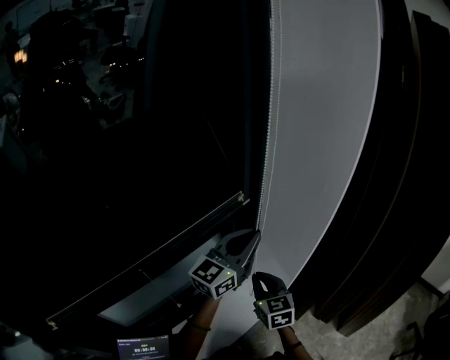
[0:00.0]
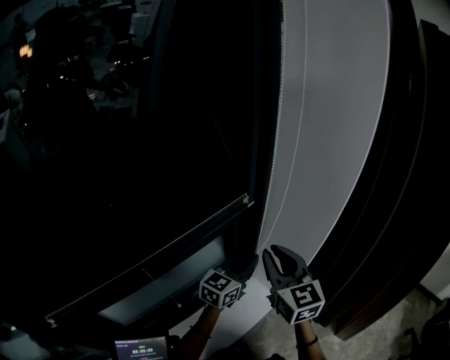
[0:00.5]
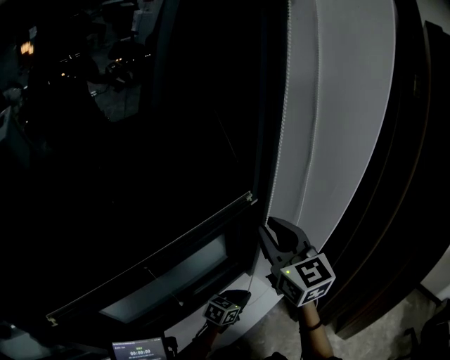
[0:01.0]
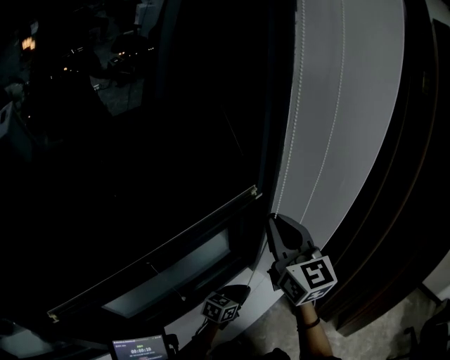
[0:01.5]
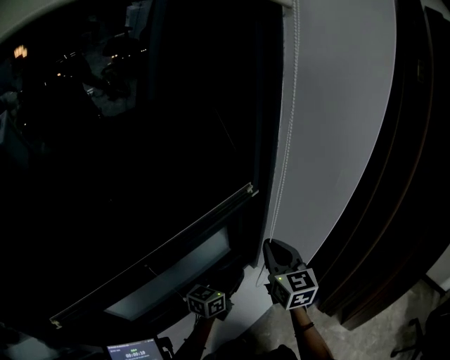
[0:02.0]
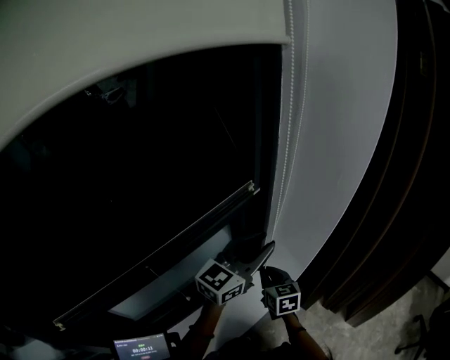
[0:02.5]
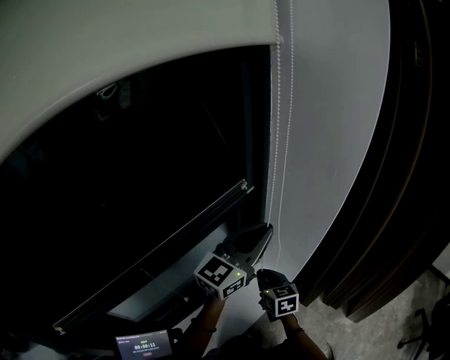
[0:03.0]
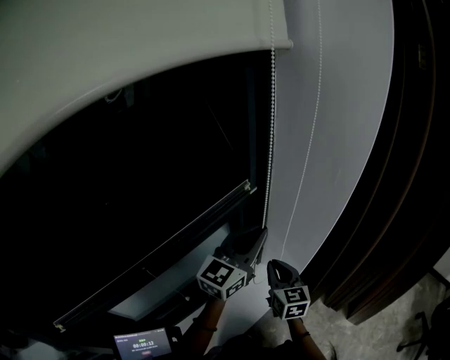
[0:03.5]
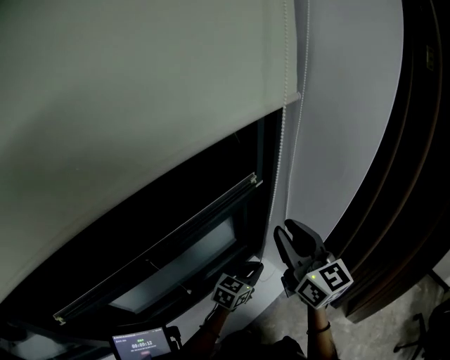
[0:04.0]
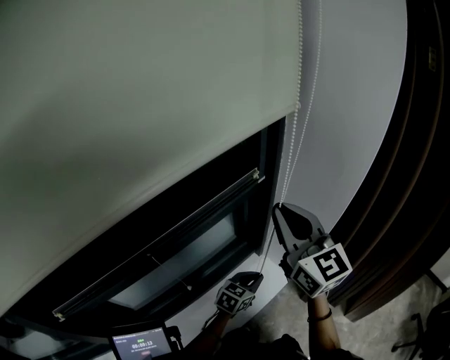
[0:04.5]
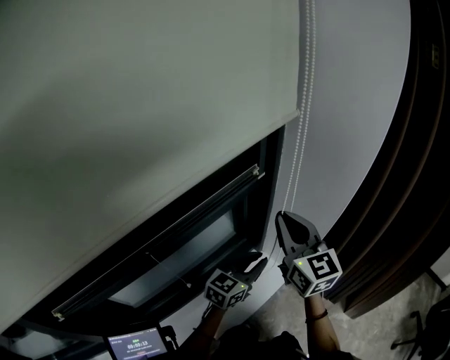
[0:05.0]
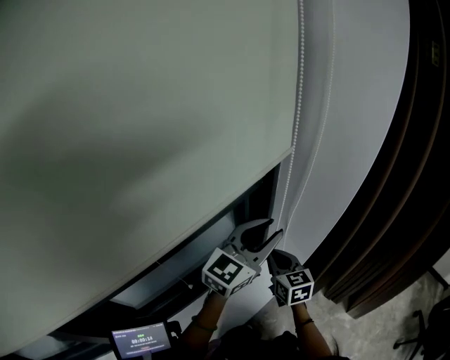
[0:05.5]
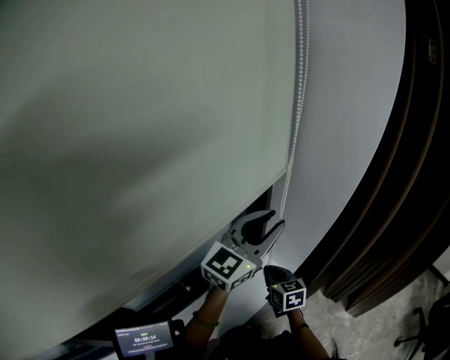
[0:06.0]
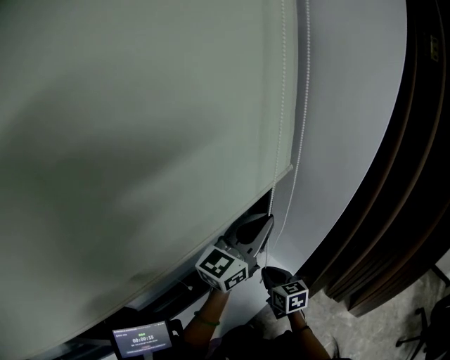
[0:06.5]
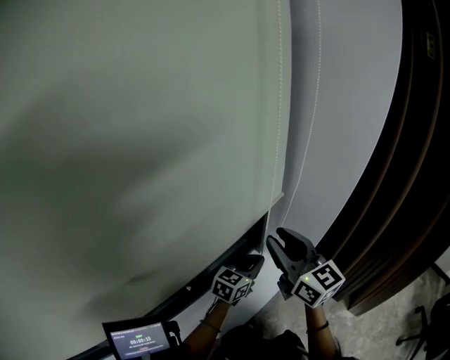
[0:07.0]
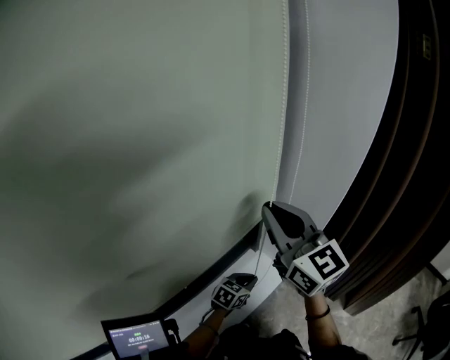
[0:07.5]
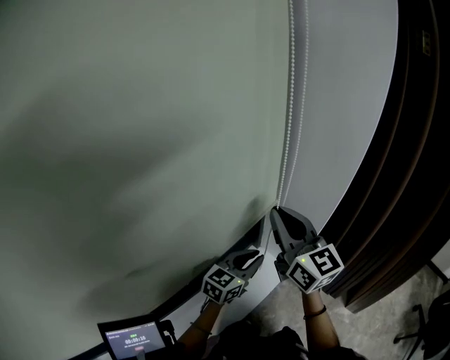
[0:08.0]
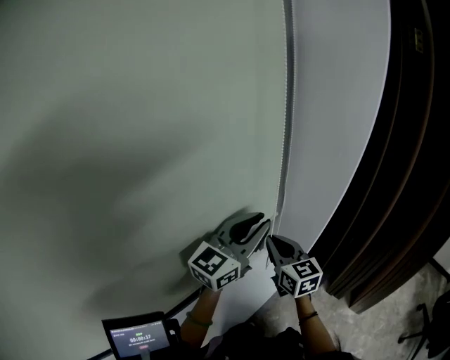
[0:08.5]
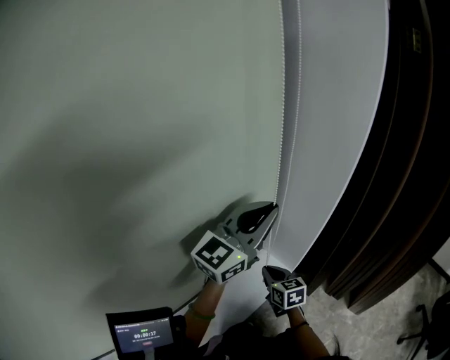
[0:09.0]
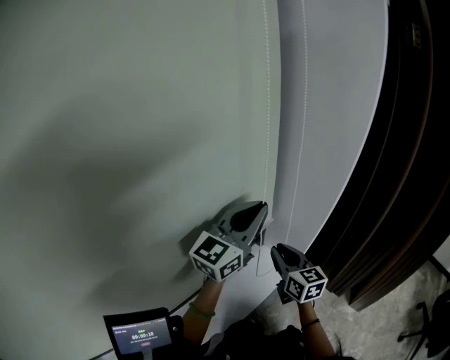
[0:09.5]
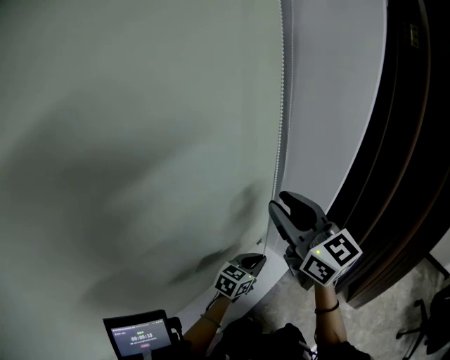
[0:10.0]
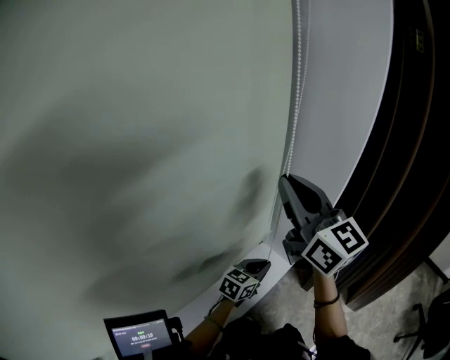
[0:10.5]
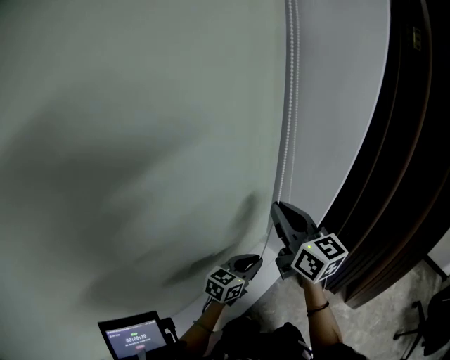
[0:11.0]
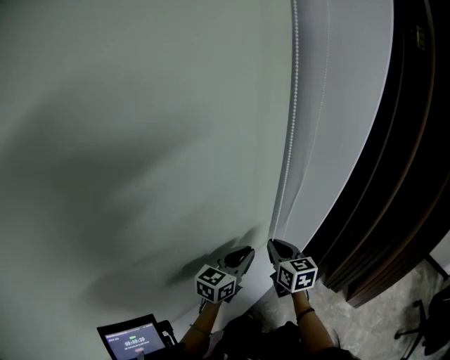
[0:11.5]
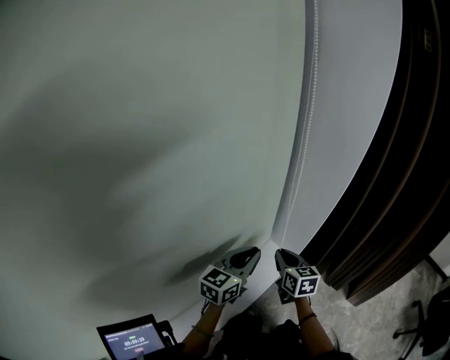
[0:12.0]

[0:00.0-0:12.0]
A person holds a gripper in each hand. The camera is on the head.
0:00.0 to 0:02.0: The right gripper travels upward by some 10 cm. Meanwhile the left gripper travels downward by some 20 cm, and swivels roughly 30 degrees.
0:02.0 to 0:04.0: The left gripper shifts some 5 cm to the right, and moves about 20 cm upward and comes back. The right gripper travels downward and back again, some 20 cm each way.
0:04.0 to 0:06.0: The right gripper shifts roughly 30 cm downward, tilts its fingers approximately 40 degrees downward, and closes; the left gripper travels upward by about 25 cm, swivels roughly 30 degrees, and opens its fingers.
0:06.0 to 0:08.0: The right gripper is displaced upward by some 30 cm, angles its fingers upward, by about 40 degrees, and opens, then closes once more. Meanwhile the left gripper travels downward by roughly 20 cm, and swivels some 30 degrees.
0:08.0 to 0:10.0: The left gripper goes upward and returns, approximately 25 cm each way, while the right gripper goes downward and returns, about 30 cm each way, and opens up.
0:10.0 to 0:12.0: The right gripper shifts roughly 30 cm downward, angles its fingers downward, by about 40 degrees, and closes, while the left gripper goes roughly 10 cm upward.

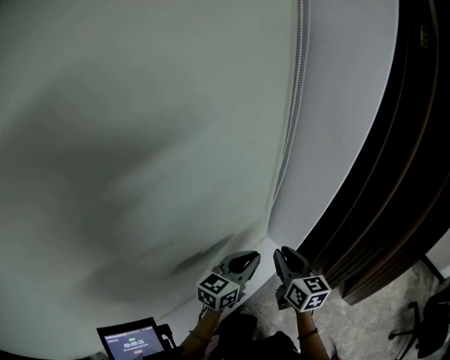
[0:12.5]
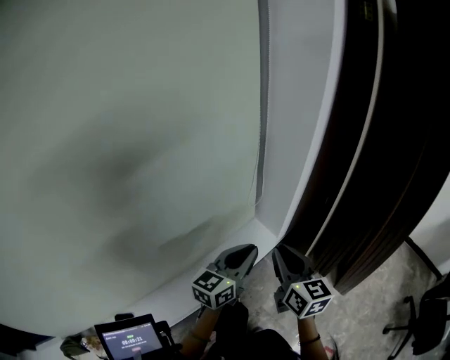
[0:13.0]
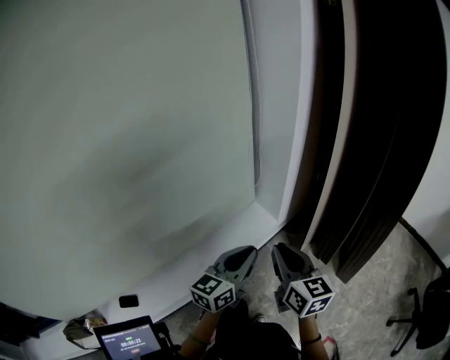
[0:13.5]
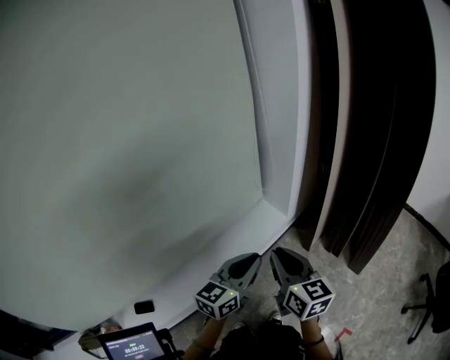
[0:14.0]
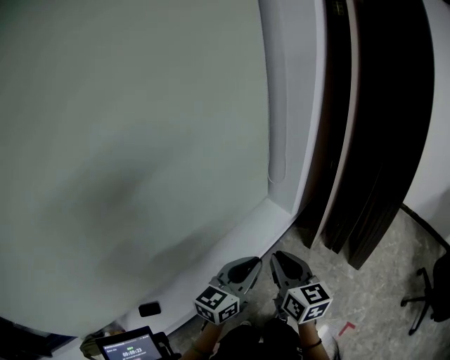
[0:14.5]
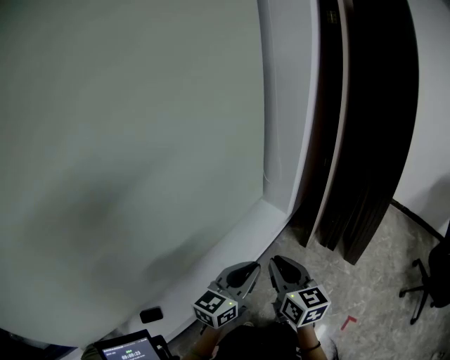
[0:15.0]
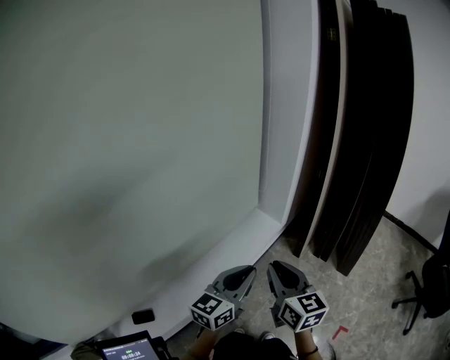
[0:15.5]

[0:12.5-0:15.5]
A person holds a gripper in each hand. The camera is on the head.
0:12.5 to 0:14.0: Both grippers travel together backward, some 30 cm.
0:14.0 to 0:15.5: Both grippers move backward and to the left, some 15 cm.

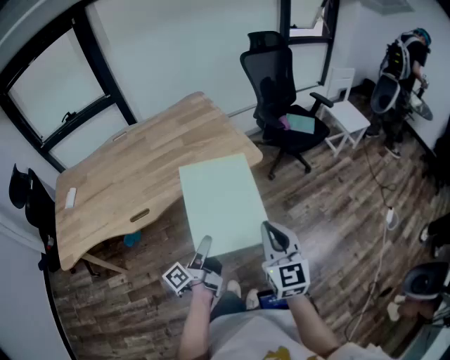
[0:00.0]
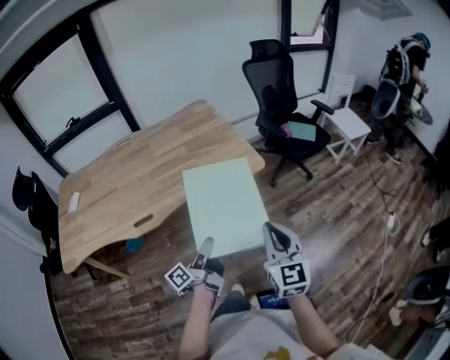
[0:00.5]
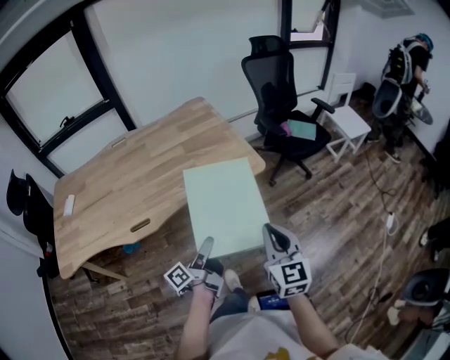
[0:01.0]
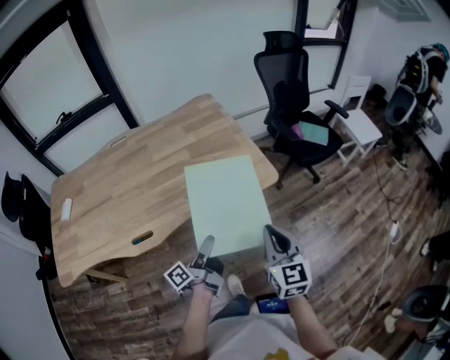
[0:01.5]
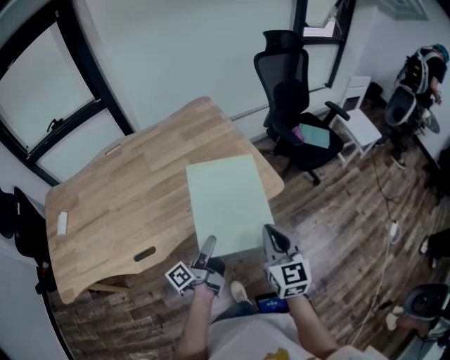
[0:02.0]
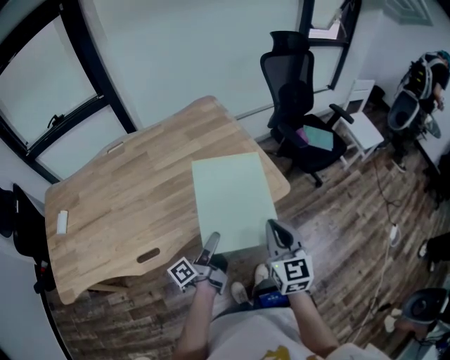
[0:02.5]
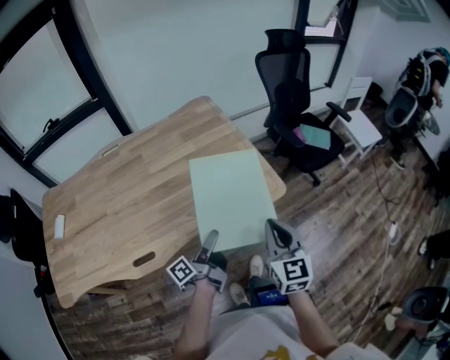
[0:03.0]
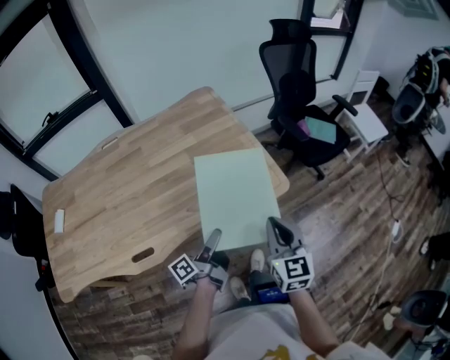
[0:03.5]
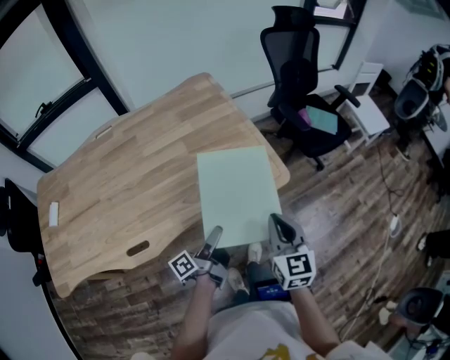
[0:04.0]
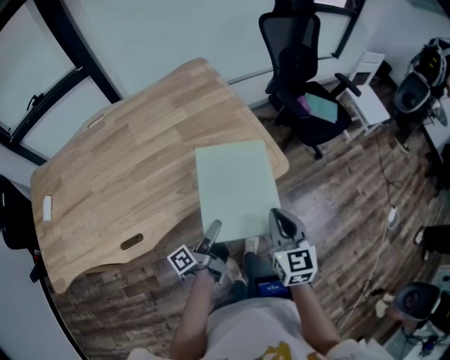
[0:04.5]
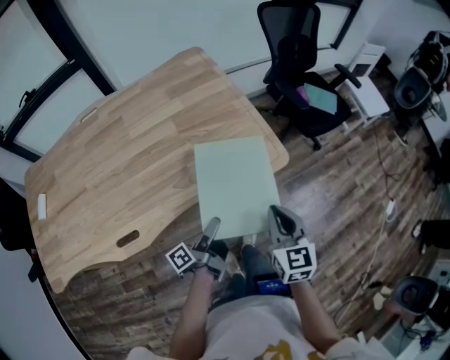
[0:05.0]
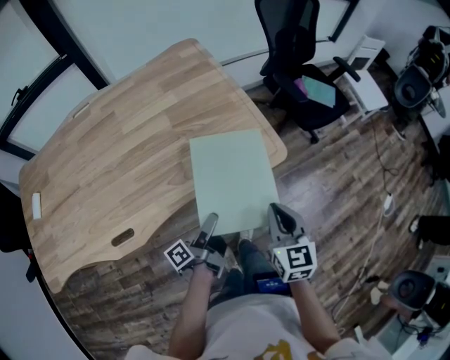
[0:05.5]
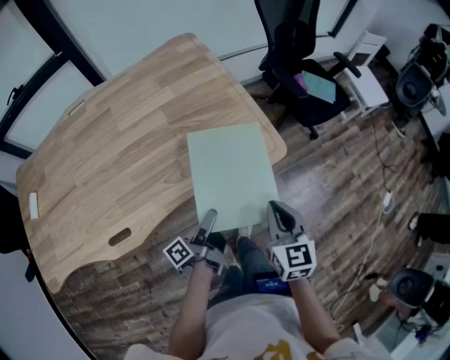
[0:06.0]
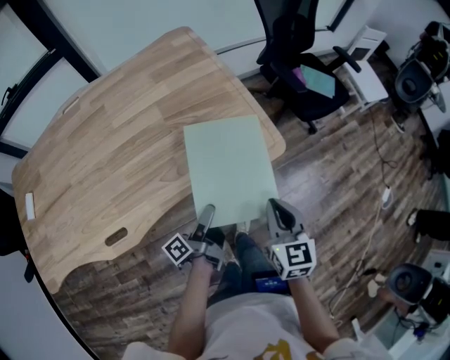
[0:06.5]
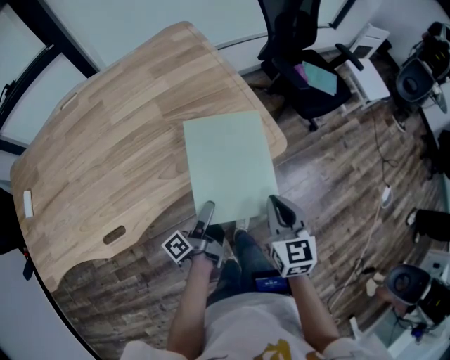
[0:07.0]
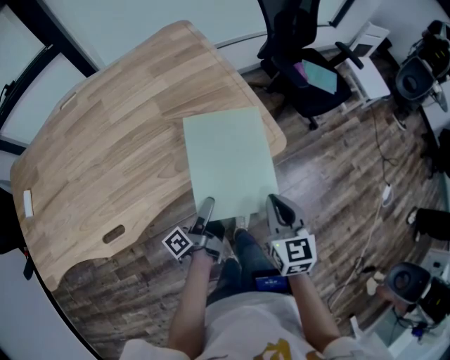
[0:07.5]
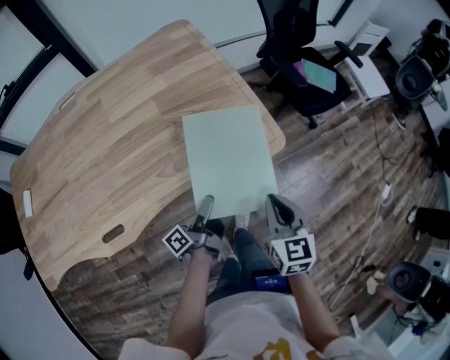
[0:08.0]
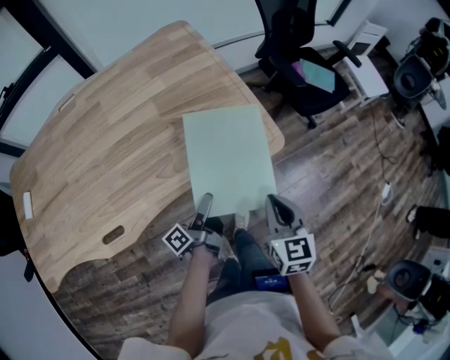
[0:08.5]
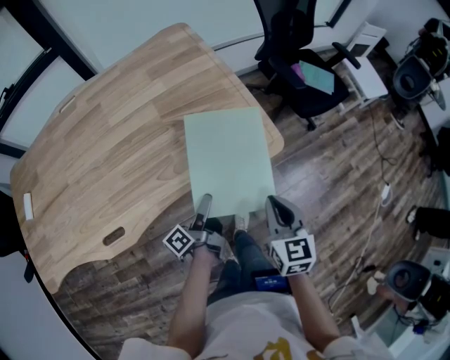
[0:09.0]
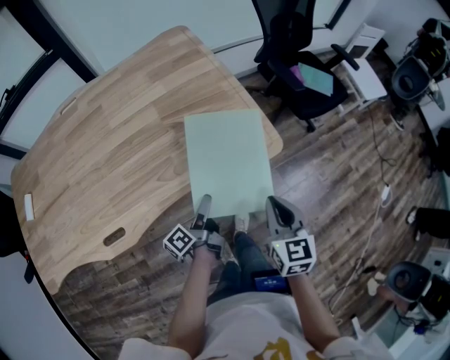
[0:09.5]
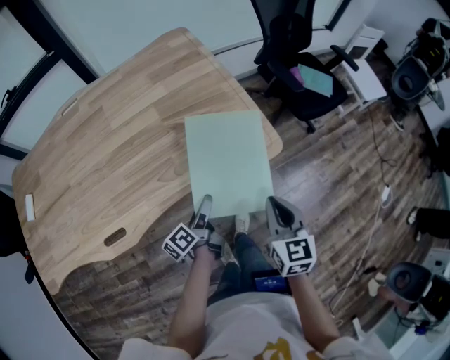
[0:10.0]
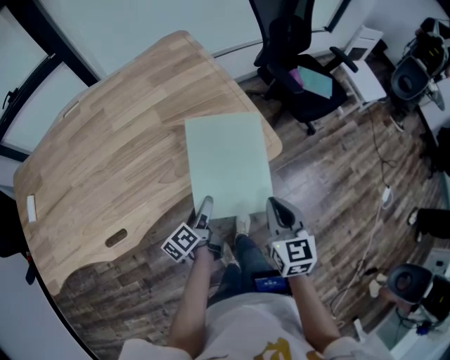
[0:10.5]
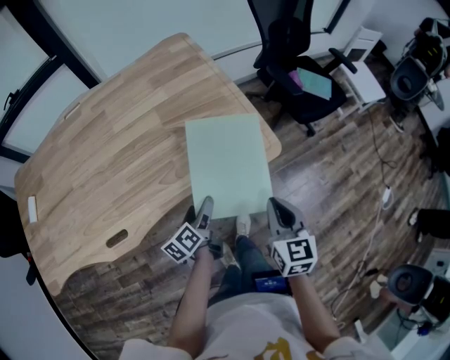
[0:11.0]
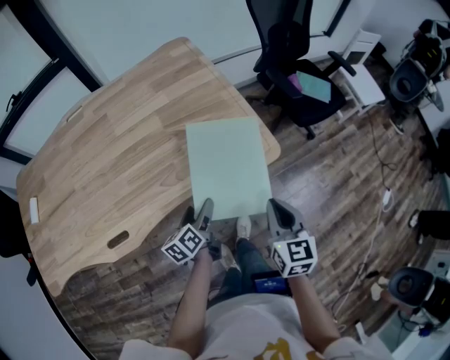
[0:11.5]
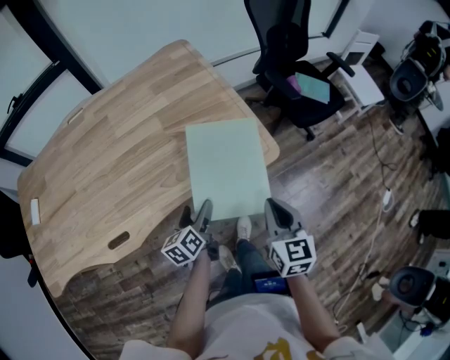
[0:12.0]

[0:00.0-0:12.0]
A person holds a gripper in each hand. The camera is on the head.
0:00.0 to 0:02.0: The right gripper moves roughly 20 cm.
0:02.0 to 0:04.0: The right gripper shifts by approximately 5 cm.
0:04.0 to 0:06.0: The right gripper travels downward by approximately 5 cm.
